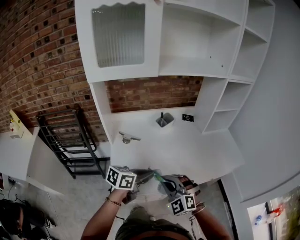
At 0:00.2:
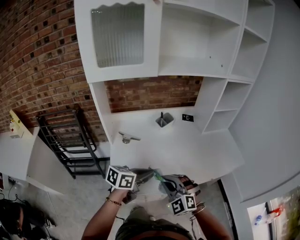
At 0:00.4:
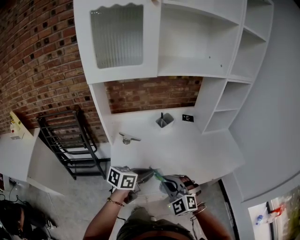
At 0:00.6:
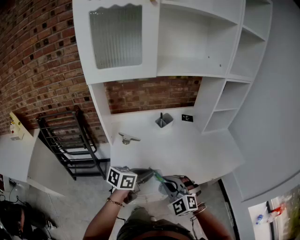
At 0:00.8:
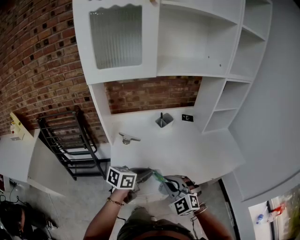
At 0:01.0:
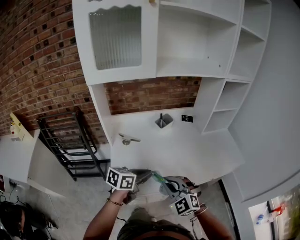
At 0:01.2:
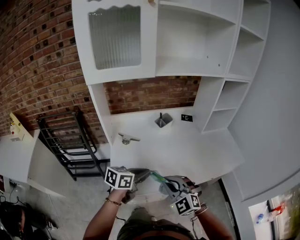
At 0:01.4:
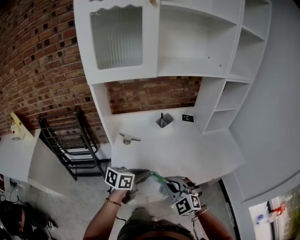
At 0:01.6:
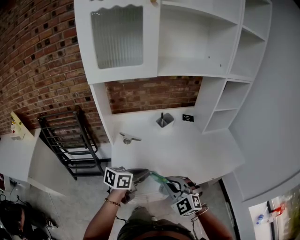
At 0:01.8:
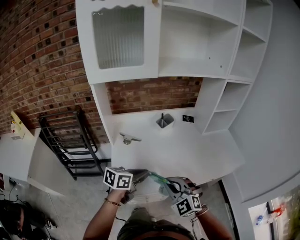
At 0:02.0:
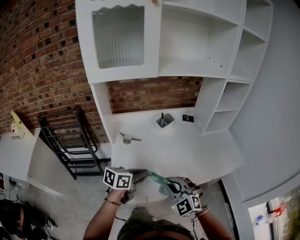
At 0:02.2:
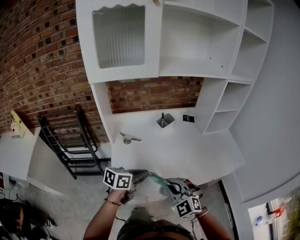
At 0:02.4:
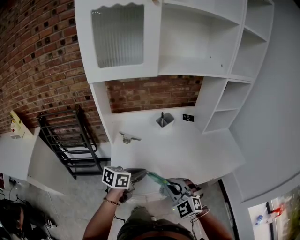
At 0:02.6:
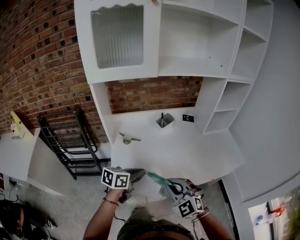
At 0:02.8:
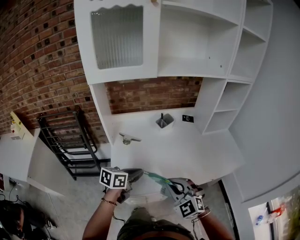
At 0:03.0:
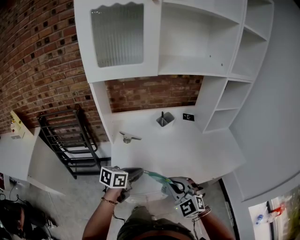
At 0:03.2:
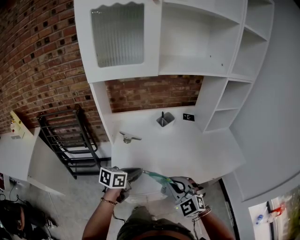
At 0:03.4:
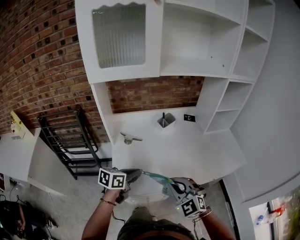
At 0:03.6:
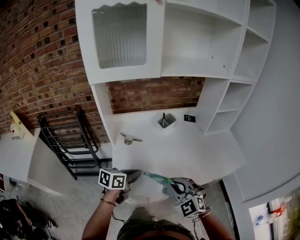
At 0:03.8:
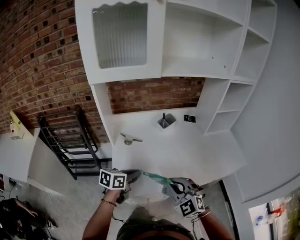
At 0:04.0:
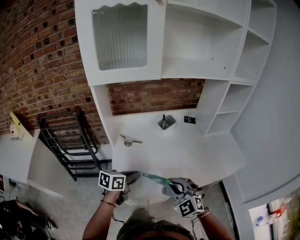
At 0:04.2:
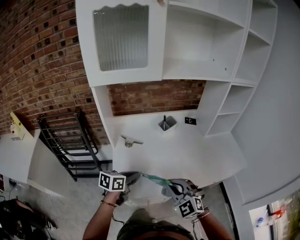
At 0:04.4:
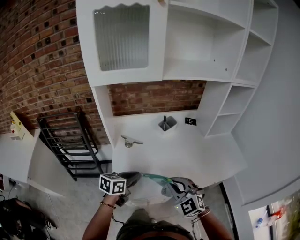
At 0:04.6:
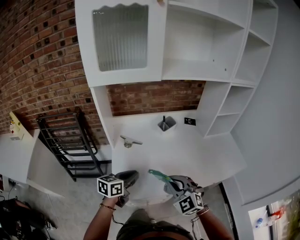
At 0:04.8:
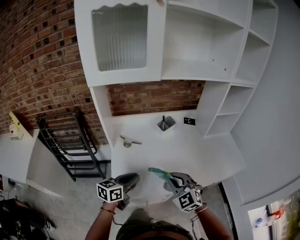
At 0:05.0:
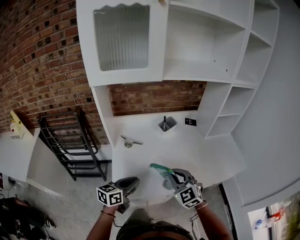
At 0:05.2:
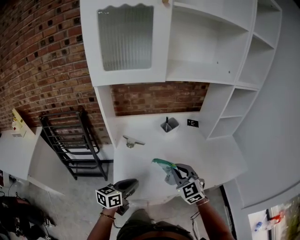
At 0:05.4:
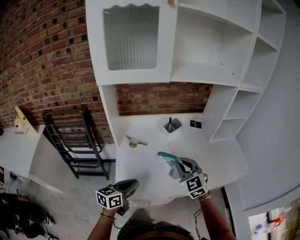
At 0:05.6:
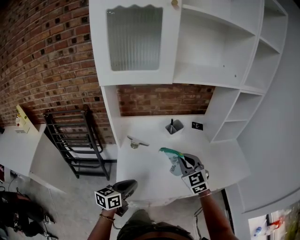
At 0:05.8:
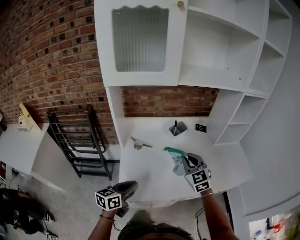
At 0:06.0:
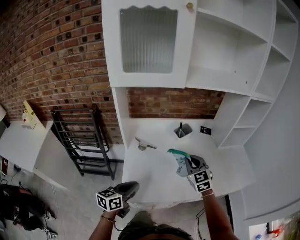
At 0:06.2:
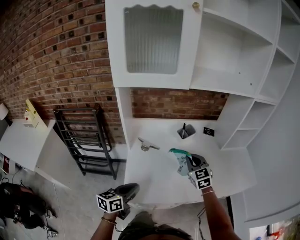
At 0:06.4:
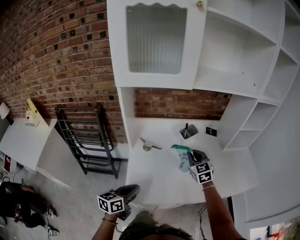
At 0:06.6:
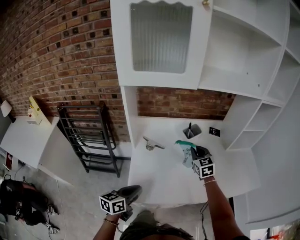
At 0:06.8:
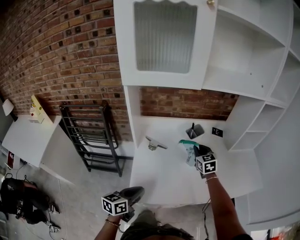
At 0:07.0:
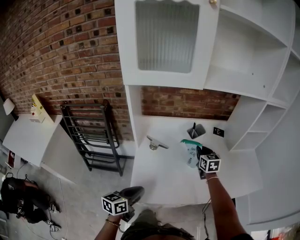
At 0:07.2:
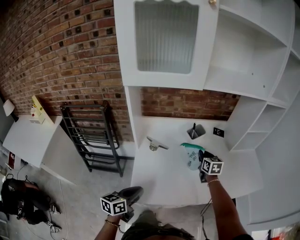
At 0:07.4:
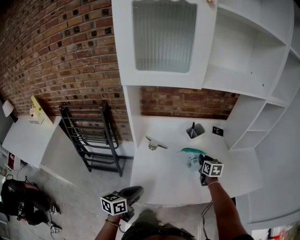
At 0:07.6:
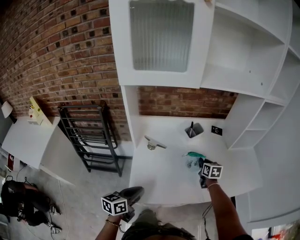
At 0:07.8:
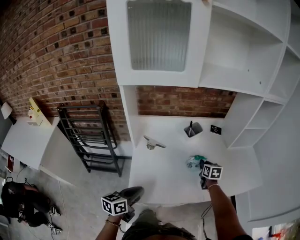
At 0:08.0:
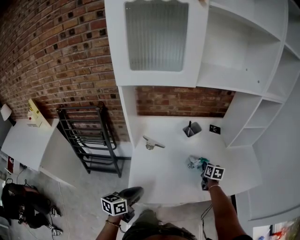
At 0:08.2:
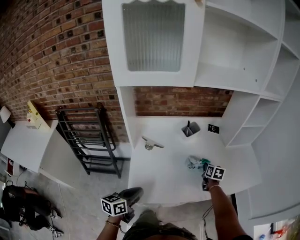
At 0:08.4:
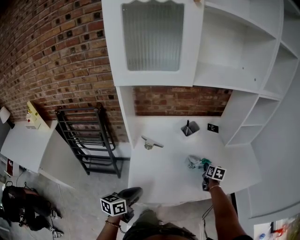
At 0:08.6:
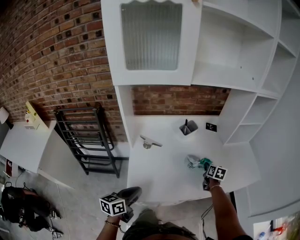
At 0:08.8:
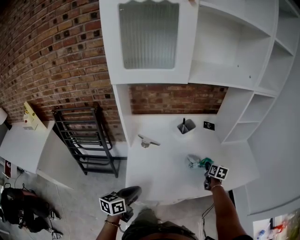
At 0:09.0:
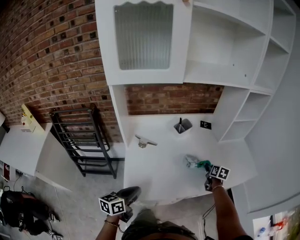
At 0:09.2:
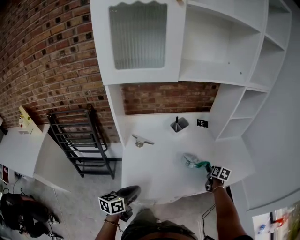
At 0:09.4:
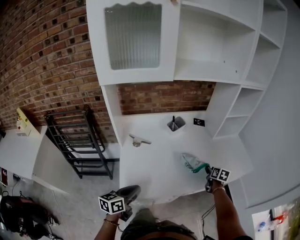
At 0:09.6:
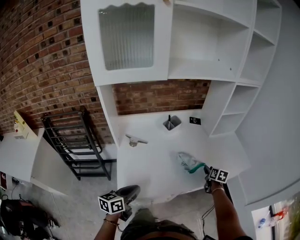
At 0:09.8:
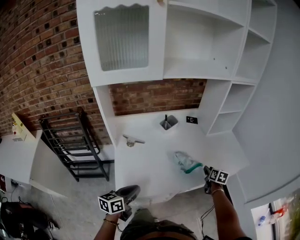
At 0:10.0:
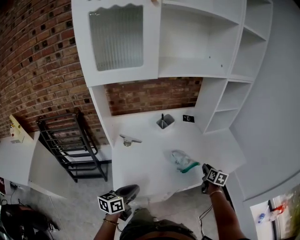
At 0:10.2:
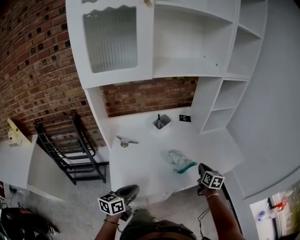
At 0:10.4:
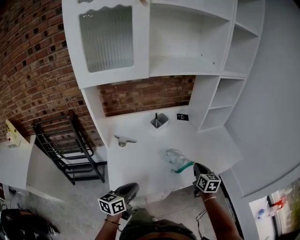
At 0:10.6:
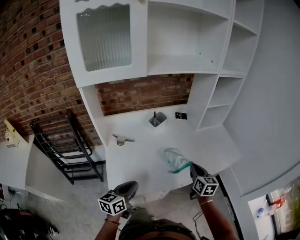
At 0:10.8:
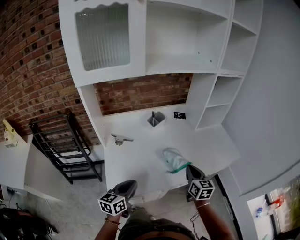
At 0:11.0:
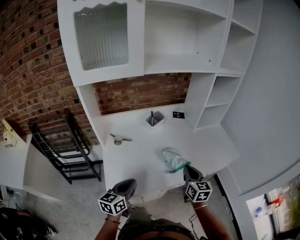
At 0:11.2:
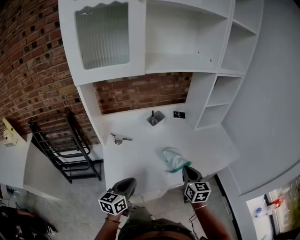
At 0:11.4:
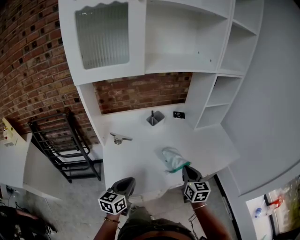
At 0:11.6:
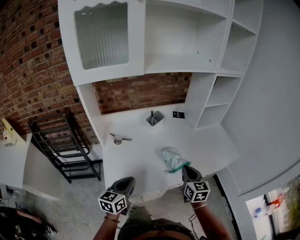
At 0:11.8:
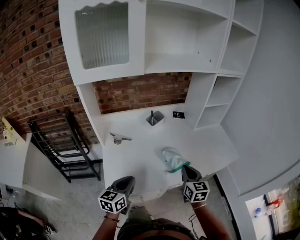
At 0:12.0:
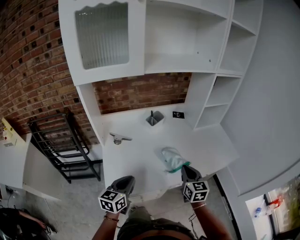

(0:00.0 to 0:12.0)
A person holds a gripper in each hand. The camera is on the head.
0:00.0 - 0:03.0: The grippers make only small movements.
0:03.0 - 0:04.4: There are only small adjustments of the grippers.
0:04.4 - 0:06.0: The right gripper heads forward, covering some 15 cm; the left gripper heads to the left, covering roughly 5 cm.
0:06.0 - 0:07.6: The right gripper heads downward, forward and to the right, covering roughly 20 cm, and swivels about 40 degrees.
0:07.6 - 0:09.0: The right gripper heads to the right, covering approximately 15 cm, and turns by roughly 20 degrees.
0:09.0 - 0:10.4: The left gripper heads to the right, covering approximately 5 cm. Meanwhile the right gripper shifts some 15 cm backward and upward, and swivels roughly 20 degrees.
0:10.4 - 0:12.0: The right gripper shifts about 10 cm to the left and backward.

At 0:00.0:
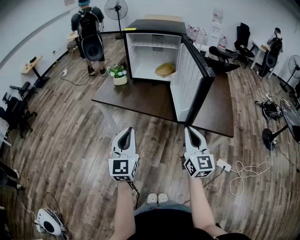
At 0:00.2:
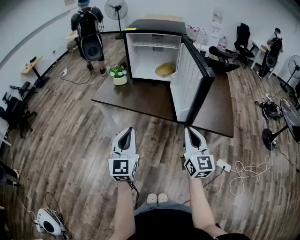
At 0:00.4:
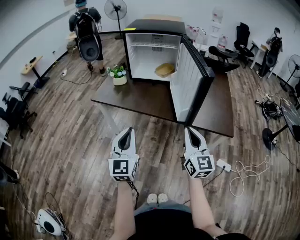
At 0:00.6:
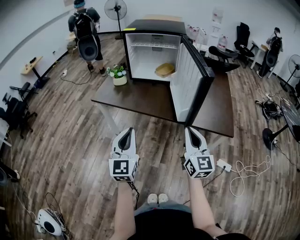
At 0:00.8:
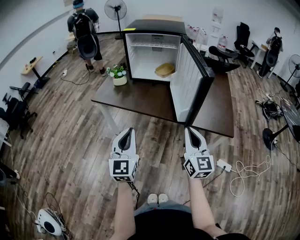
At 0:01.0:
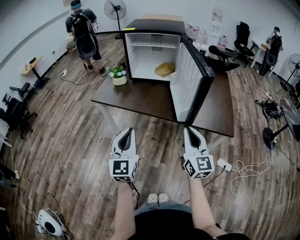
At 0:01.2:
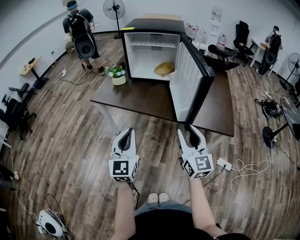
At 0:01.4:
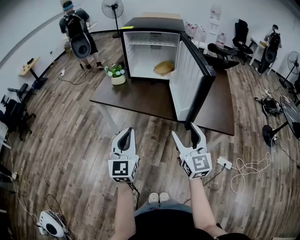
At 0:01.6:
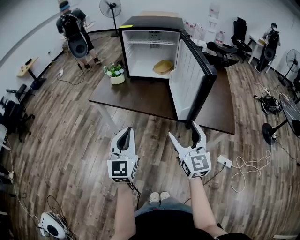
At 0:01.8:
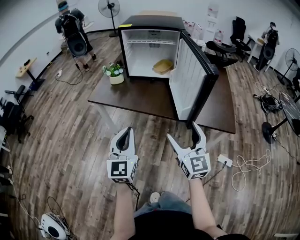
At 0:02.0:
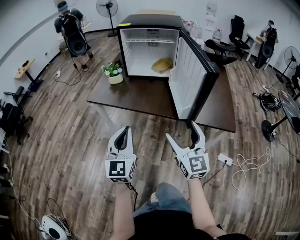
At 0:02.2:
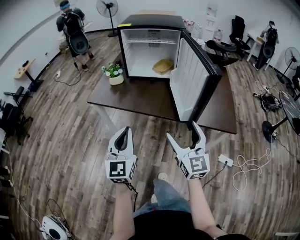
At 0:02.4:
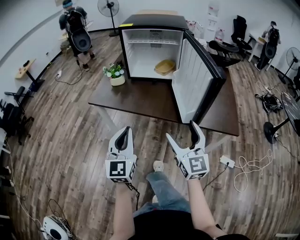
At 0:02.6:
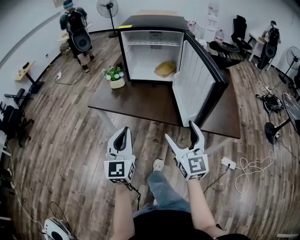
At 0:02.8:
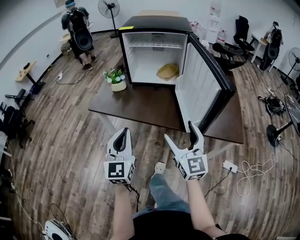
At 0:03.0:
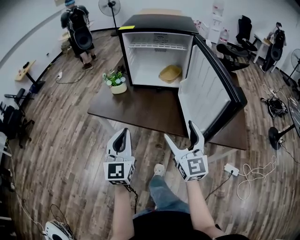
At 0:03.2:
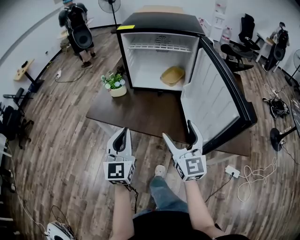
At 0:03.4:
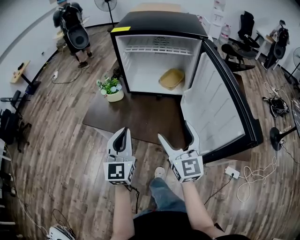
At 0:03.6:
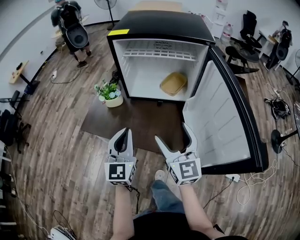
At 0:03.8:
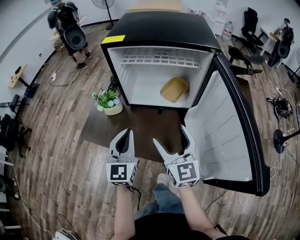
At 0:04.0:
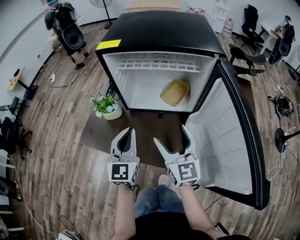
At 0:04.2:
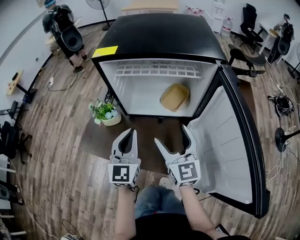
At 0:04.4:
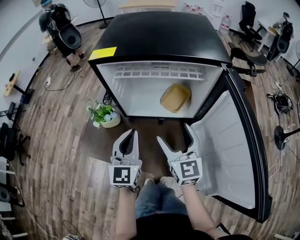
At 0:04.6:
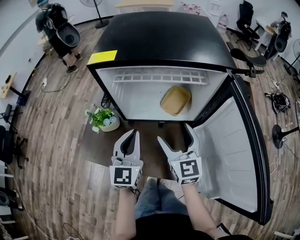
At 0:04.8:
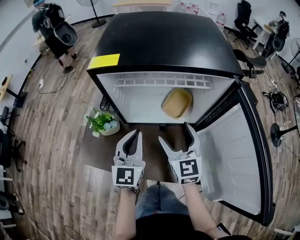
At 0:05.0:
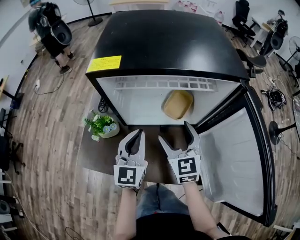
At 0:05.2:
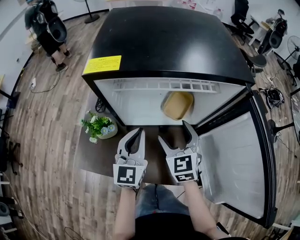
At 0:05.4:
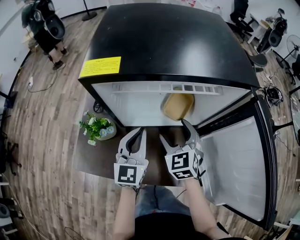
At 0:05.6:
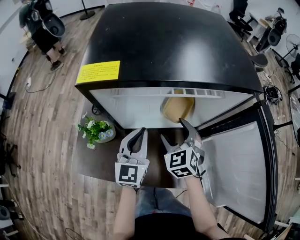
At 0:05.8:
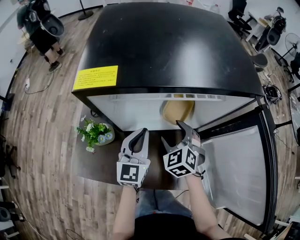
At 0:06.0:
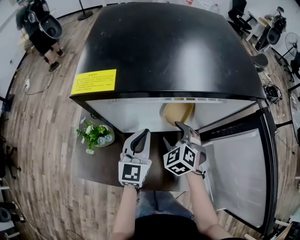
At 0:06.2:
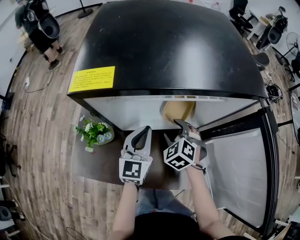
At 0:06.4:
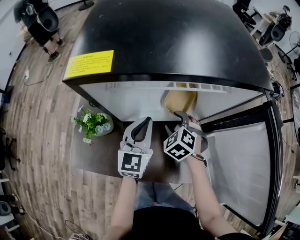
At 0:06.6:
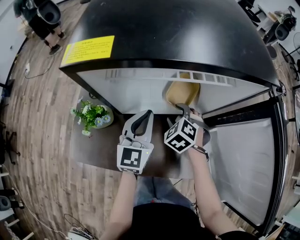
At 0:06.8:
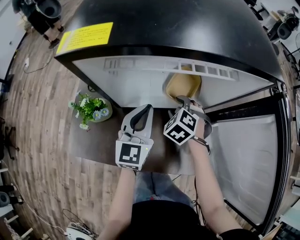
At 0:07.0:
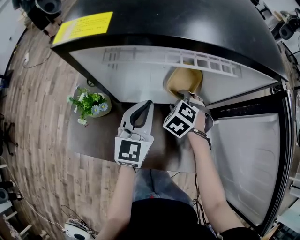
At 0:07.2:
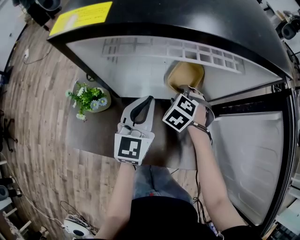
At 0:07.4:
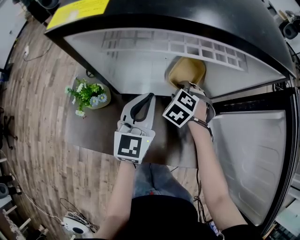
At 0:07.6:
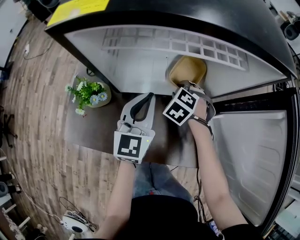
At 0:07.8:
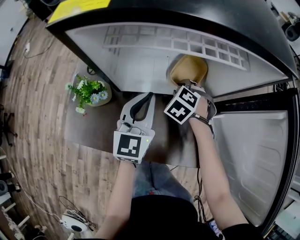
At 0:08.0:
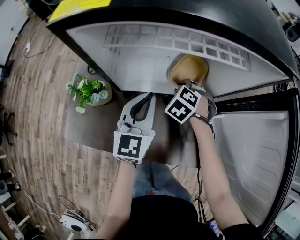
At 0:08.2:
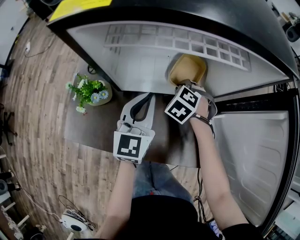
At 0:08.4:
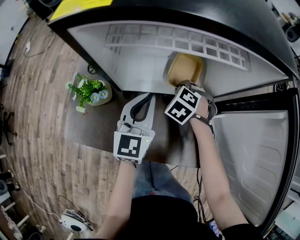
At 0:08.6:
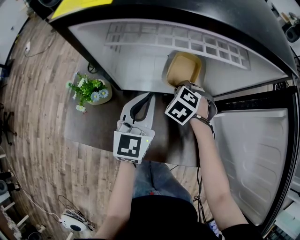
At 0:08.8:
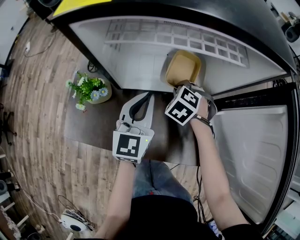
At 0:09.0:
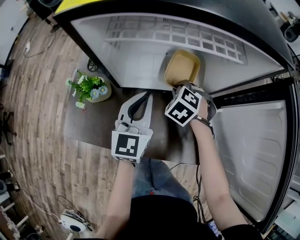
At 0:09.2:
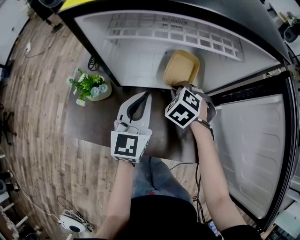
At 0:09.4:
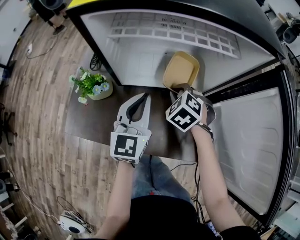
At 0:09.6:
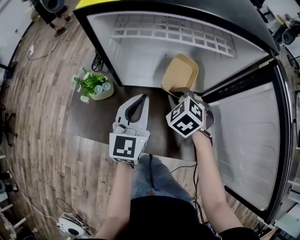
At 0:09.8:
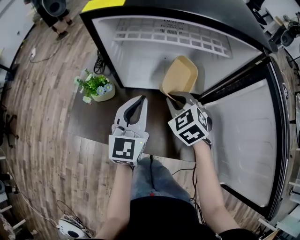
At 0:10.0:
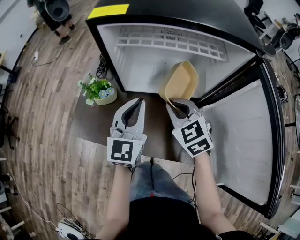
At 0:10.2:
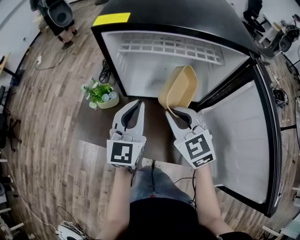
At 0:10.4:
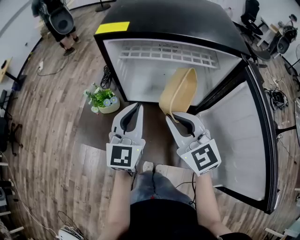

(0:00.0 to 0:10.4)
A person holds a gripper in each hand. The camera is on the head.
0:00.0 - 0:01.4: The right gripper opens its fingers.
0:01.4 - 0:03.0: The grippers both shift forward by some 15 cm.
0:03.0 - 0:04.4: Both grippers travel together forward, some 35 cm.
0:04.4 - 0:06.0: The left gripper is displaced forward and downward by approximately 15 cm. The right gripper travels downward and forward by some 20 cm, and angles its fingers downward, by some 40 degrees.
0:06.0 - 0:07.4: The right gripper shifts about 10 cm downward, and turns by about 20 degrees.
0:07.4 - 0:09.0: The right gripper closes.
0:09.0 - 0:10.4: The right gripper heads upward and backward, covering some 30 cm, and tips its fingers upward by about 60 degrees, while the left gripper is displaced upward and backward by some 15 cm.

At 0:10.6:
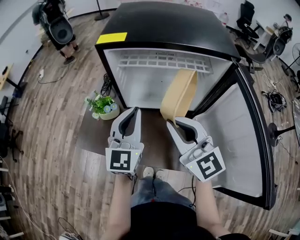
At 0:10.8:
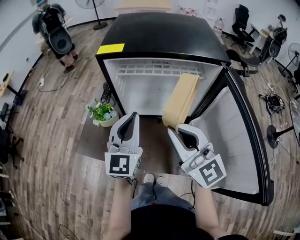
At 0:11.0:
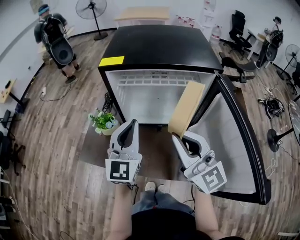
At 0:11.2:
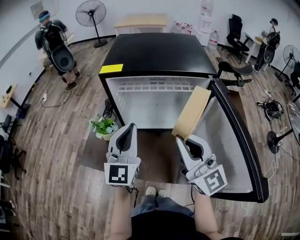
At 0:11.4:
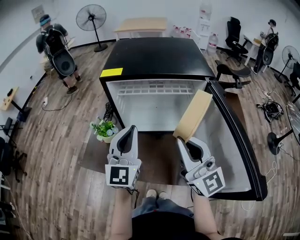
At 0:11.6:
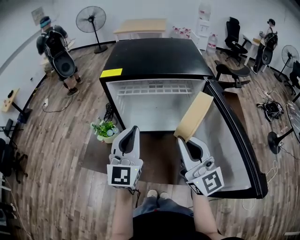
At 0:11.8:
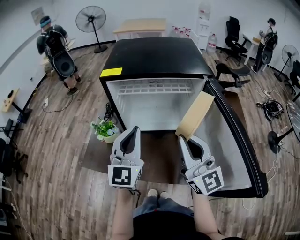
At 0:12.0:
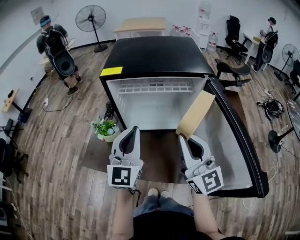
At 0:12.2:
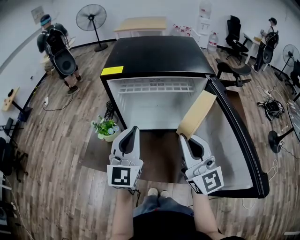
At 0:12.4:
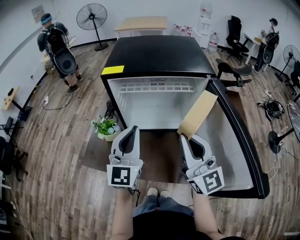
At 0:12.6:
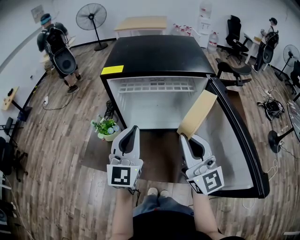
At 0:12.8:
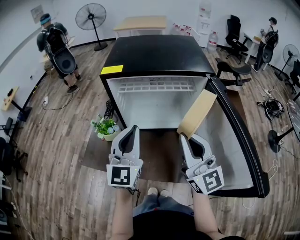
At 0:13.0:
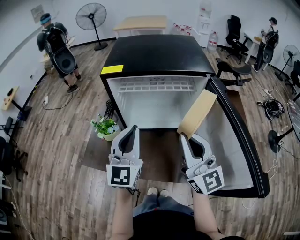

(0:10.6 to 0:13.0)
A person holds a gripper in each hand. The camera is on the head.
0:10.6 - 0:11.8: The right gripper goes some 10 cm to the right, backward and upward, and swivels about 20 degrees. Meanwhile the left gripper heads upward and backward, covering some 10 cm.
0:11.8 - 0:13.0: Both grippers stay about where they are.
